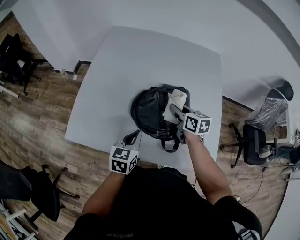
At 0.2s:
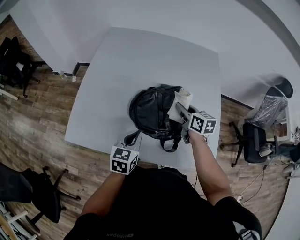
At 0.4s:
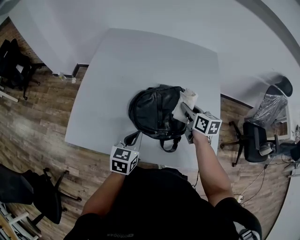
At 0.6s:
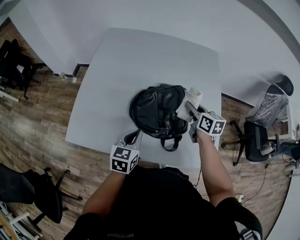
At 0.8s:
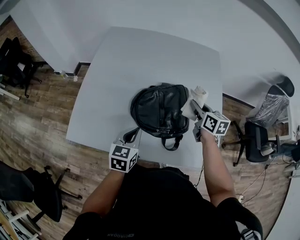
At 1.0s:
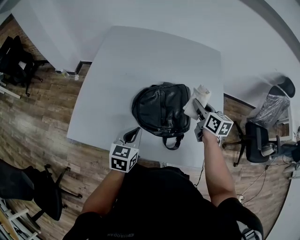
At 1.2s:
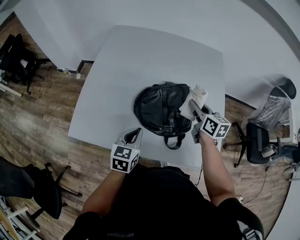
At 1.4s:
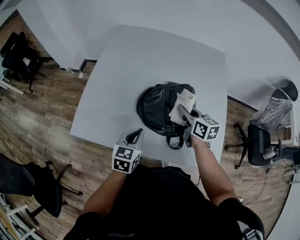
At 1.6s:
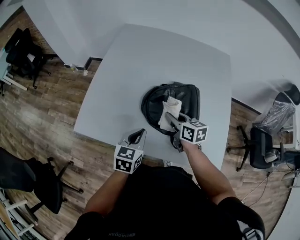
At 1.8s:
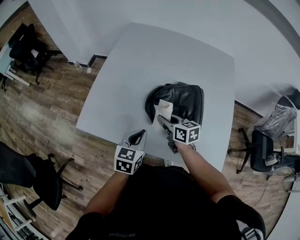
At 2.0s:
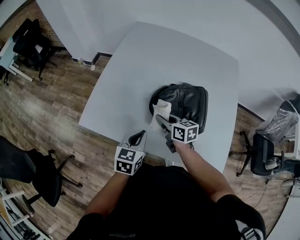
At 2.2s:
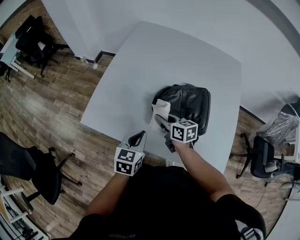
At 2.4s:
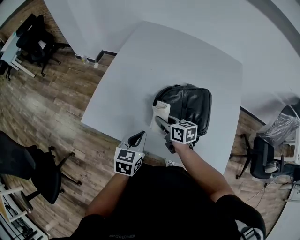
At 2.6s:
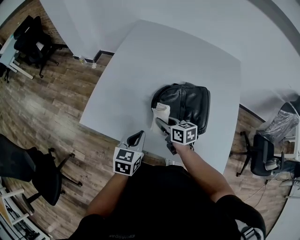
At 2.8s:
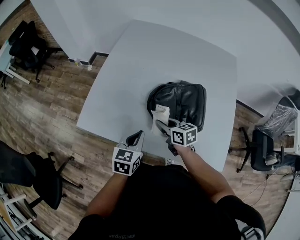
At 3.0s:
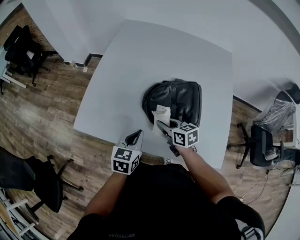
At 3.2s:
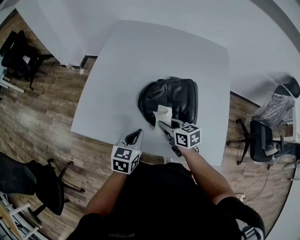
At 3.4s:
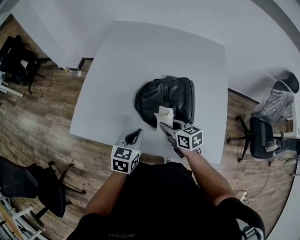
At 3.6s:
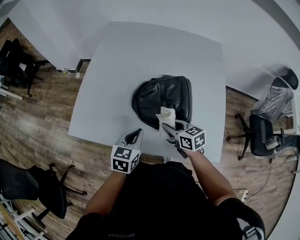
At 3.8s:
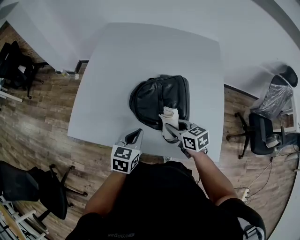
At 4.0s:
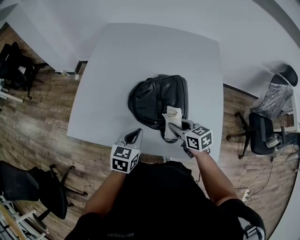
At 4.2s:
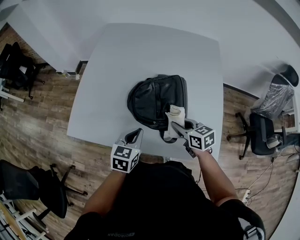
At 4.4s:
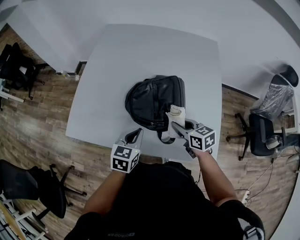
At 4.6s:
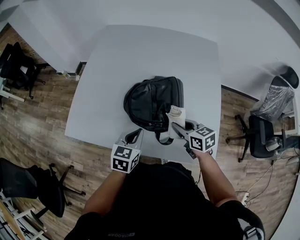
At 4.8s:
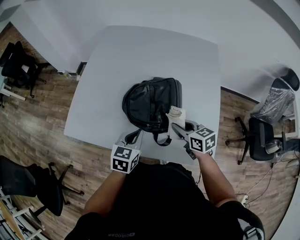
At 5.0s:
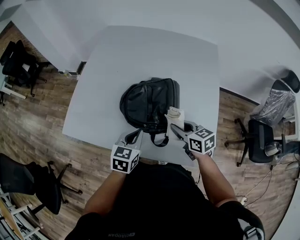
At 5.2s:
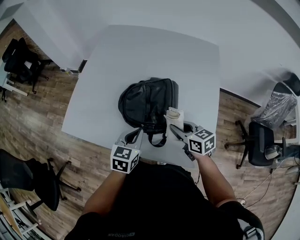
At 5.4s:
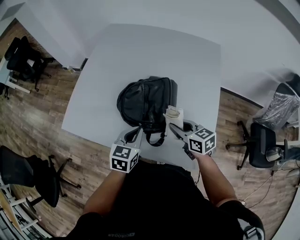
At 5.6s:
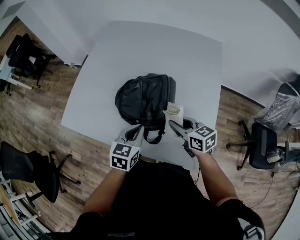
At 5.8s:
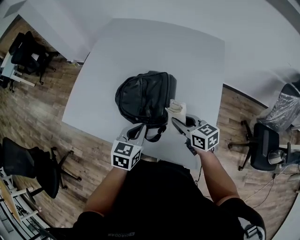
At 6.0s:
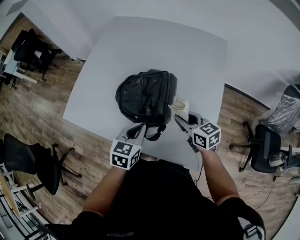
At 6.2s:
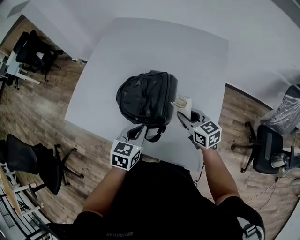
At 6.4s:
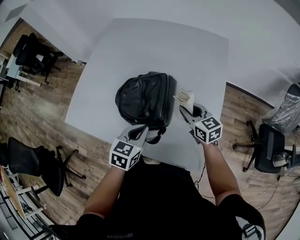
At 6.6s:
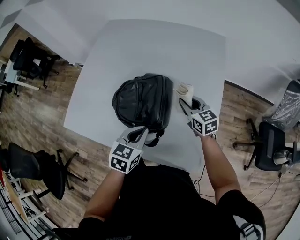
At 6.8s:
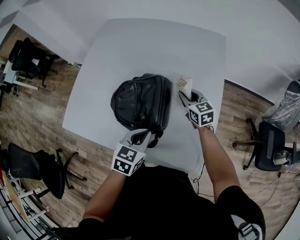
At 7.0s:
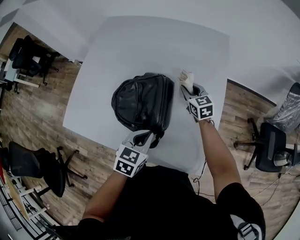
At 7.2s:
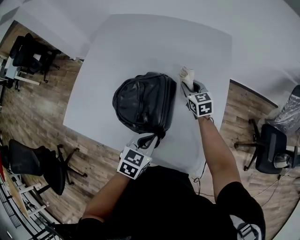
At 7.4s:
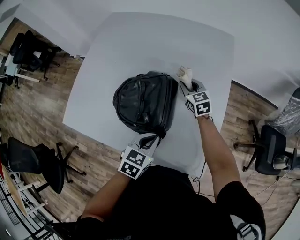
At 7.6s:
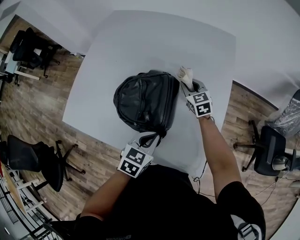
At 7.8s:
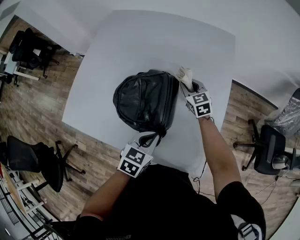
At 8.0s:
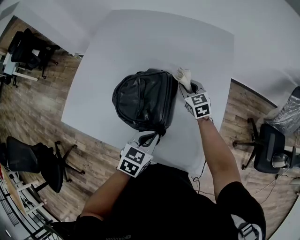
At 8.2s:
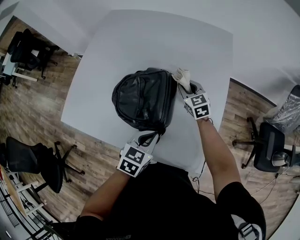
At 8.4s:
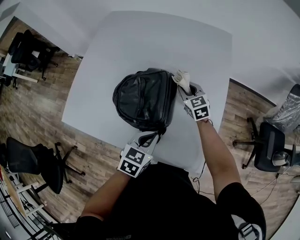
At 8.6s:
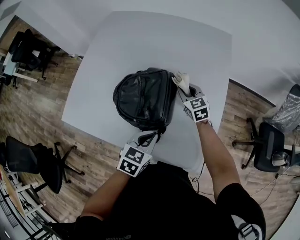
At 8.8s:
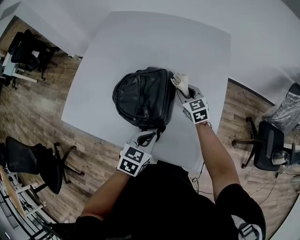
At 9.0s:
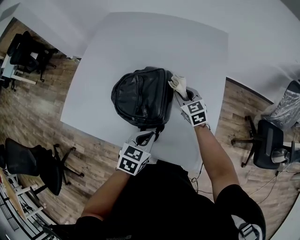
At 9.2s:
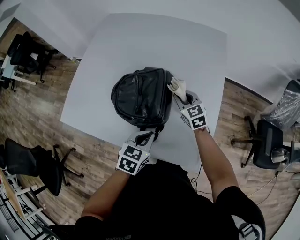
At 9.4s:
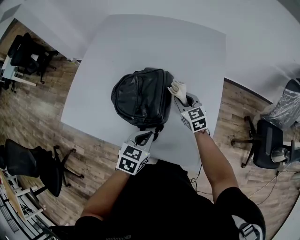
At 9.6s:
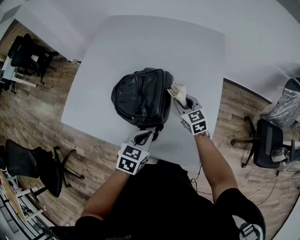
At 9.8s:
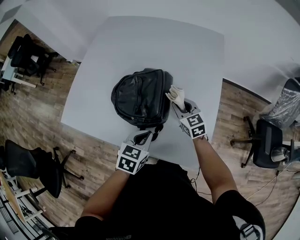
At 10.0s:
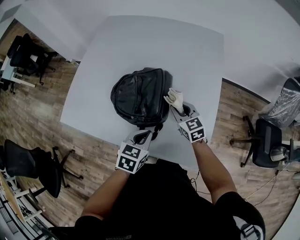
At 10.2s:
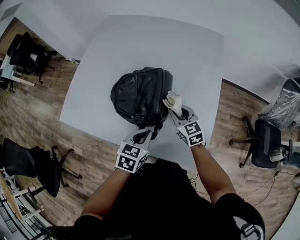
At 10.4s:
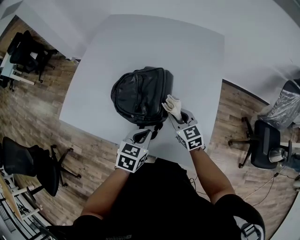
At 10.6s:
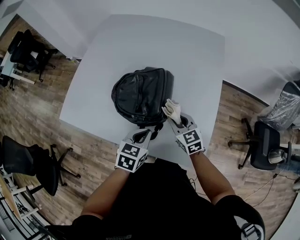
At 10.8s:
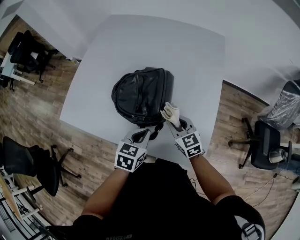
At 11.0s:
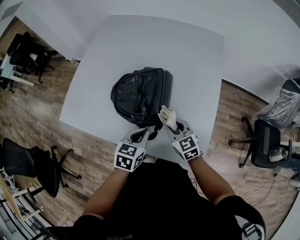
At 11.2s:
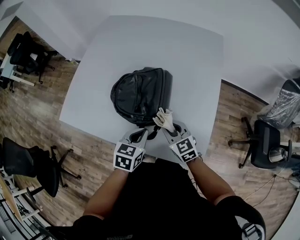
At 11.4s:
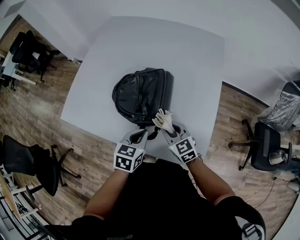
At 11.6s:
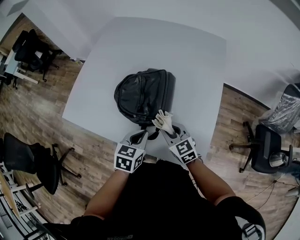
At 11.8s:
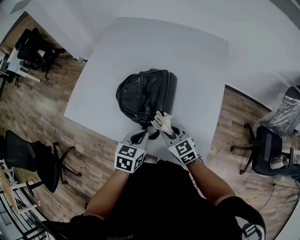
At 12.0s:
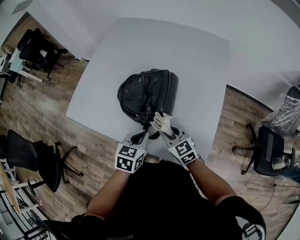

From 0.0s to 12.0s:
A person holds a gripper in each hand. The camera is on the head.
From 0.0s to 1.6s: The right gripper is displaced to the left and backward by roughly 10 cm.
From 1.6s to 3.0s: The right gripper travels to the left by approximately 5 cm.
From 3.0s to 4.4s: The right gripper shifts roughly 15 cm to the right, while the left gripper is displaced to the right by about 10 cm.
From 4.4s to 6.0s: The grippers both shift to the right by roughly 10 cm.
From 6.0s to 7.6s: The left gripper moves to the right, about 5 cm; the right gripper moves forward, approximately 20 cm, and swivels some 20 degrees.
From 7.6s to 9.0s: The right gripper travels backward by roughly 10 cm.
From 9.0s to 10.4s: The right gripper travels backward by some 10 cm.
From 10.4s to 12.0s: The right gripper heads backward and to the left, covering some 10 cm.

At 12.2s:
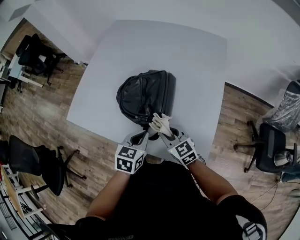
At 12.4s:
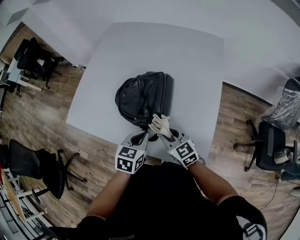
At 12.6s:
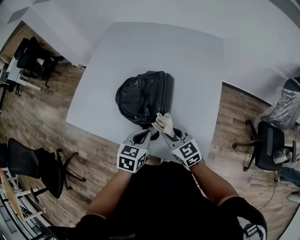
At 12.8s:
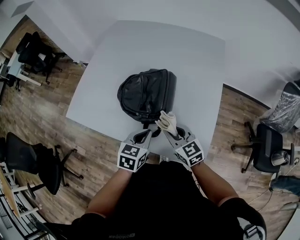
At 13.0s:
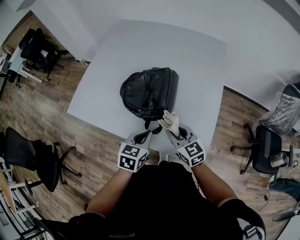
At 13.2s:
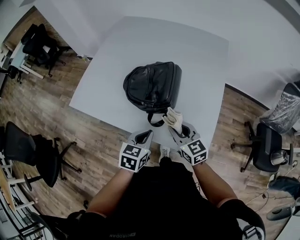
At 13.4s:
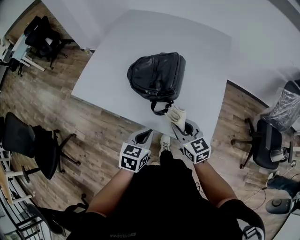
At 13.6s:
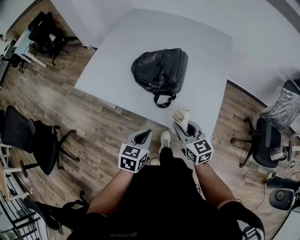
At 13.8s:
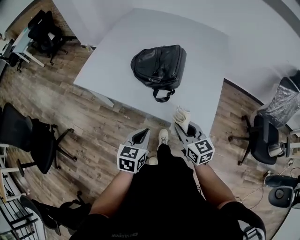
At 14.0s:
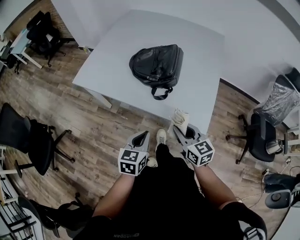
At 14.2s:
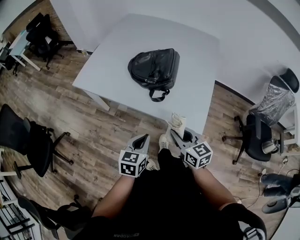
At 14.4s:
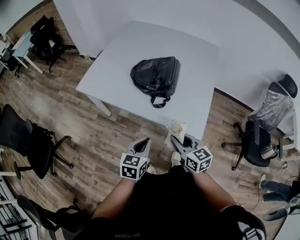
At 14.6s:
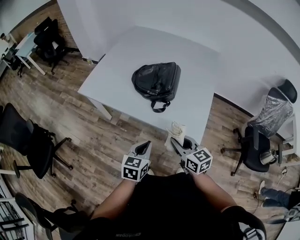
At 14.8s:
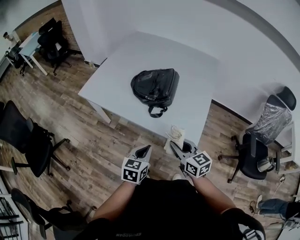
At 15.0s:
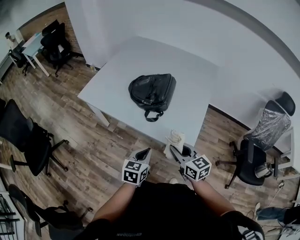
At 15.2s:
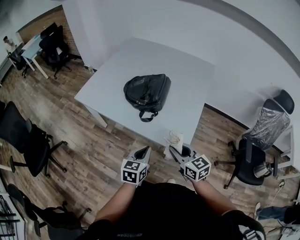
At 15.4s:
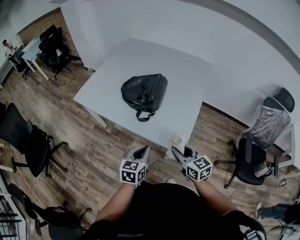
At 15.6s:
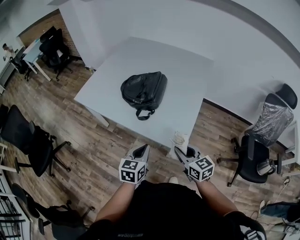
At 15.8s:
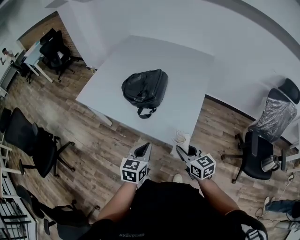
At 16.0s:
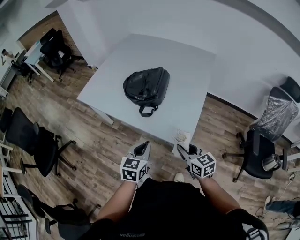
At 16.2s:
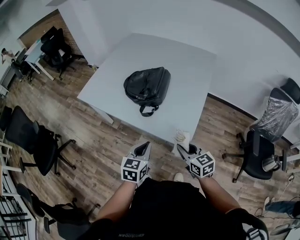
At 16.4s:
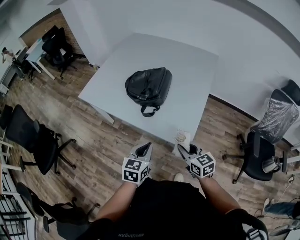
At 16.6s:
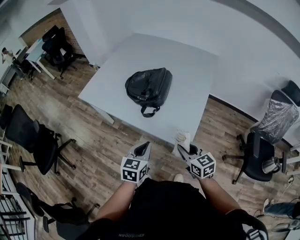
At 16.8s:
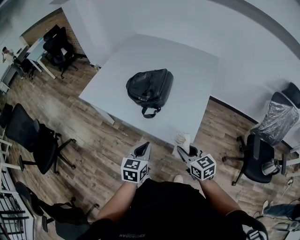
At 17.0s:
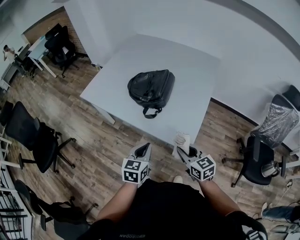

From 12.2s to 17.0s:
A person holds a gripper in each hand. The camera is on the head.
From 12.2s to 13.8s: Both grippers move backward, about 20 cm.
From 13.8s to 15.4s: The left gripper is displaced to the right by approximately 10 cm; the right gripper moves to the right, backward and upward, about 15 cm.
From 15.4s to 17.0s: There are only small adjustments of the grippers.

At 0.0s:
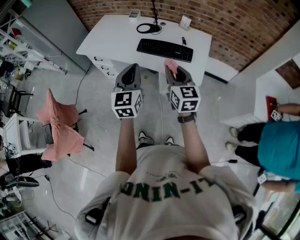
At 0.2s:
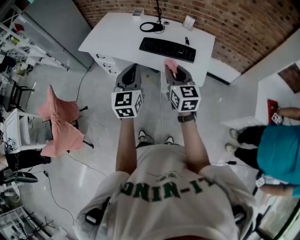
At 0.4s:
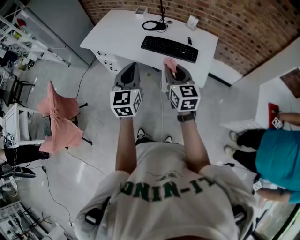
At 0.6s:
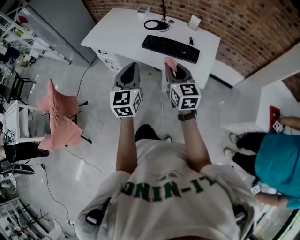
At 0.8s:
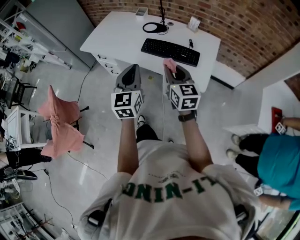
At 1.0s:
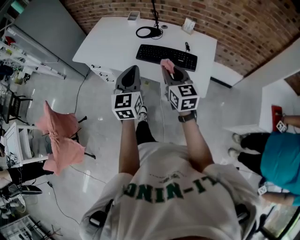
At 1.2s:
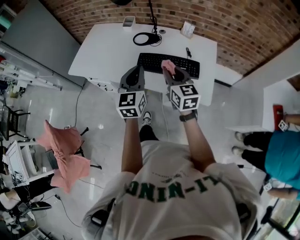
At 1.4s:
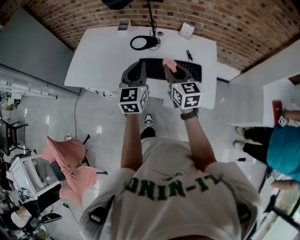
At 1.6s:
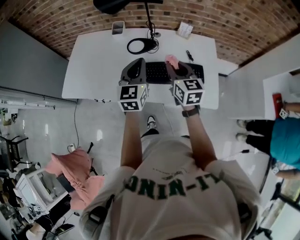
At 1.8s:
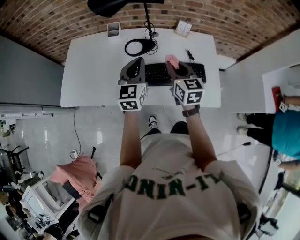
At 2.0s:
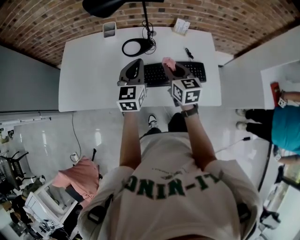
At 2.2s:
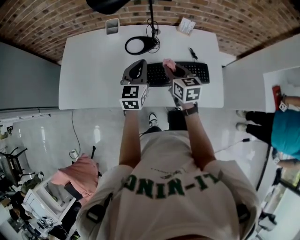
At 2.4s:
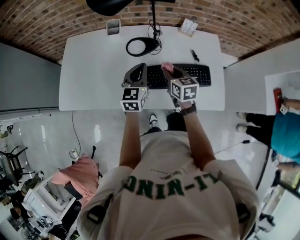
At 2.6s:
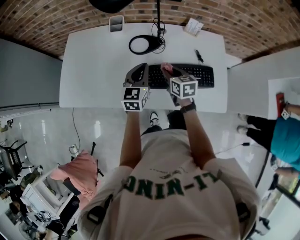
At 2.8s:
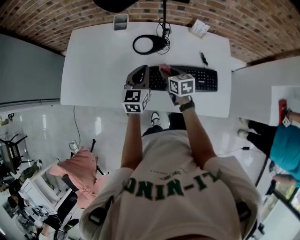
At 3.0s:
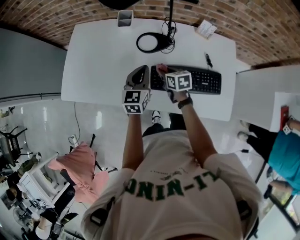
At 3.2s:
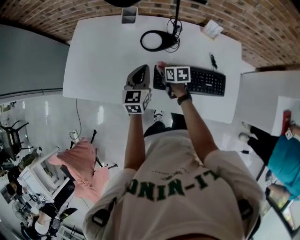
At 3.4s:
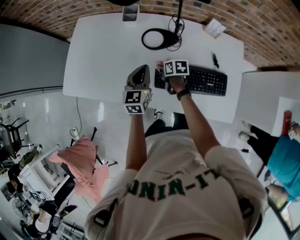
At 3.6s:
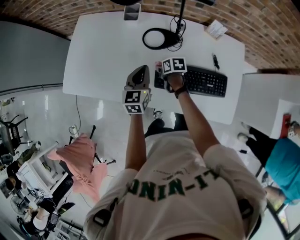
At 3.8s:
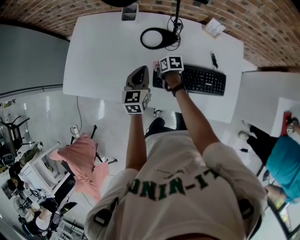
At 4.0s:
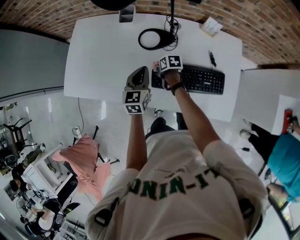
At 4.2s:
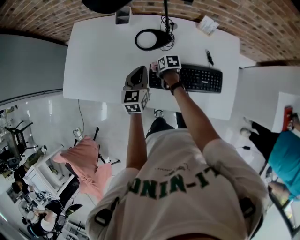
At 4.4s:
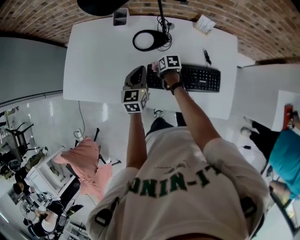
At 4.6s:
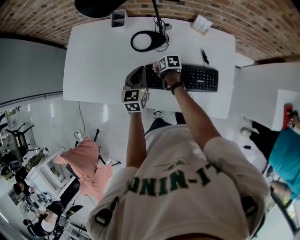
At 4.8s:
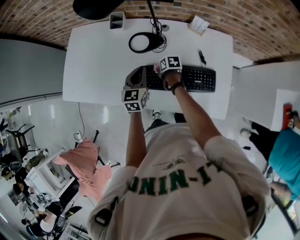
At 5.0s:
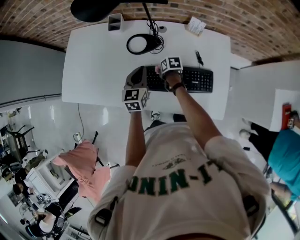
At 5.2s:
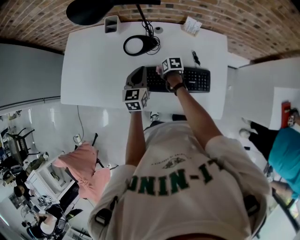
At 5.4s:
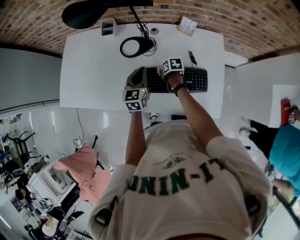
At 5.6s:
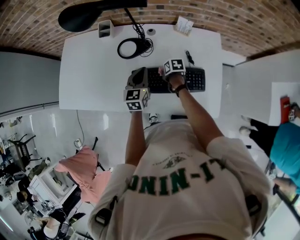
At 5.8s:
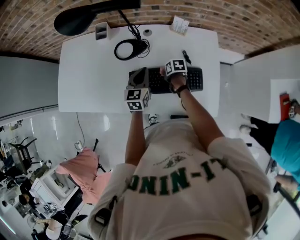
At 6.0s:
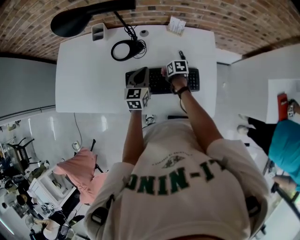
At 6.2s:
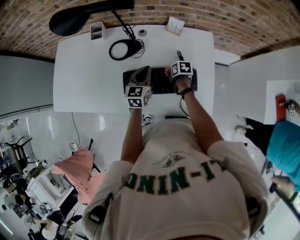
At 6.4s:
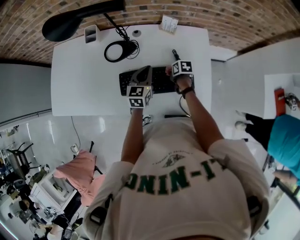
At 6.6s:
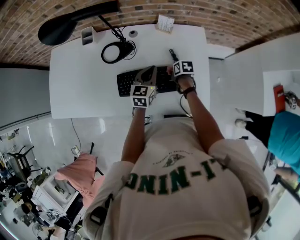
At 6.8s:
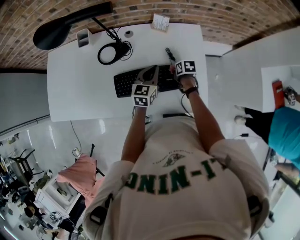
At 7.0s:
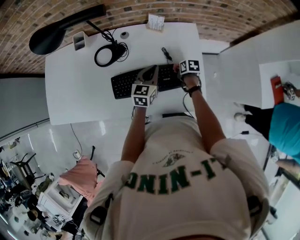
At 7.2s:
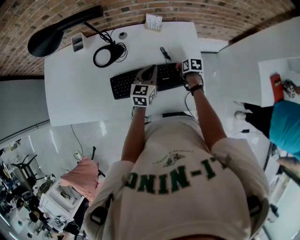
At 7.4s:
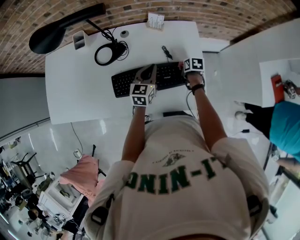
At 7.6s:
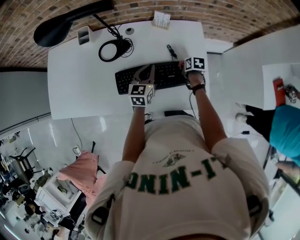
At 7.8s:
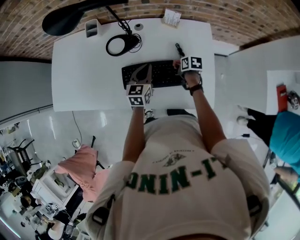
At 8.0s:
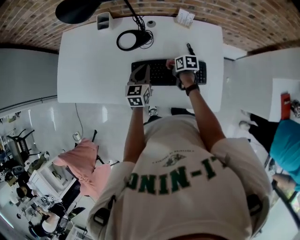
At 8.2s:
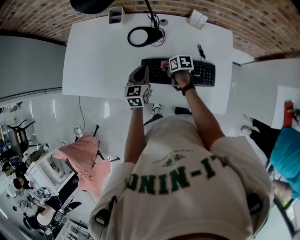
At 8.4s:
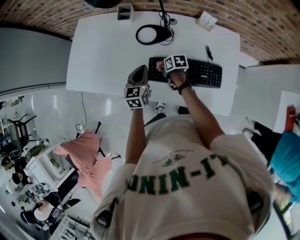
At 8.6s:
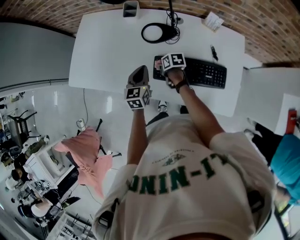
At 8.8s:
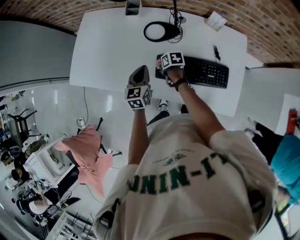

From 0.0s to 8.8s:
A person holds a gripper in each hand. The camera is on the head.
From 0.0s to 1.4s: Both grippers travel together forward, about 30 cm.
From 1.4s to 3.0s: The right gripper is displaced downward, forward and to the left by some 30 cm, and changes its angle by approximately 40 degrees. The left gripper is displaced forward, downward and to the left by roughly 25 cm.
From 3.0s to 4.4s: The right gripper is displaced downward by approximately 10 cm, and swivels about 30 degrees.
From 4.4s to 5.8s: The left gripper moves to the right, about 10 cm. Meanwhile the right gripper shifts roughly 15 cm to the right and backward.
From 5.8s to 7.4s: The left gripper travels to the right by some 15 cm; the right gripper moves to the right, some 20 cm.
From 7.4s to 8.8s: The left gripper ends up roughly 30 cm from where it was, and rotates roughly 30 degrees, while the right gripper moves some 40 cm, and swivels roughly 30 degrees.
